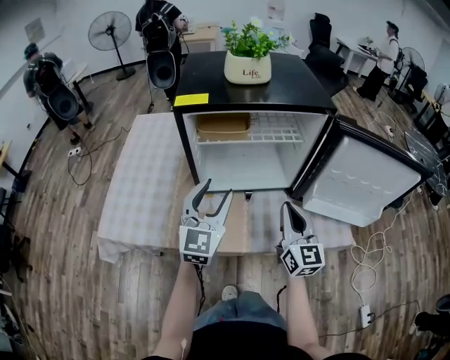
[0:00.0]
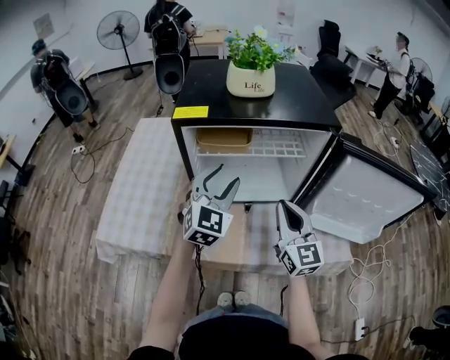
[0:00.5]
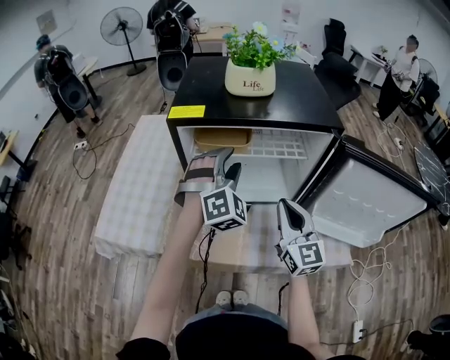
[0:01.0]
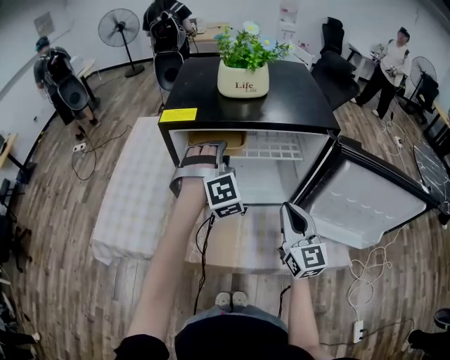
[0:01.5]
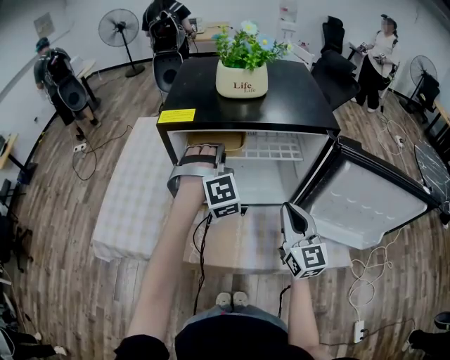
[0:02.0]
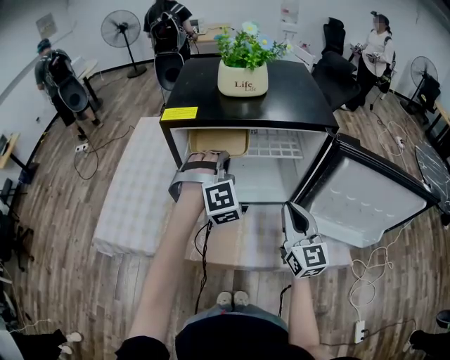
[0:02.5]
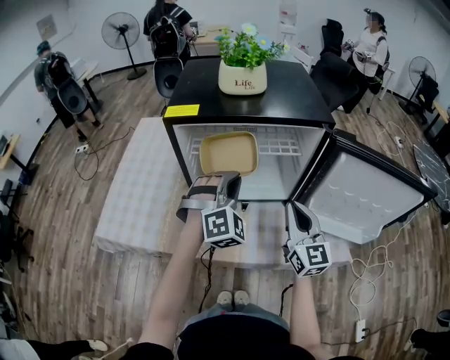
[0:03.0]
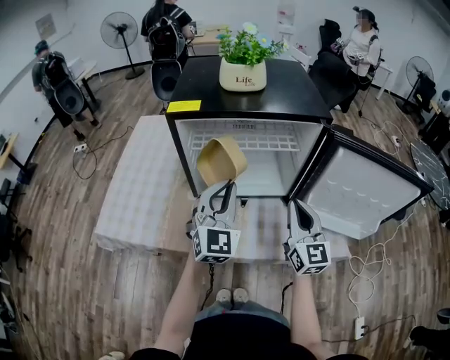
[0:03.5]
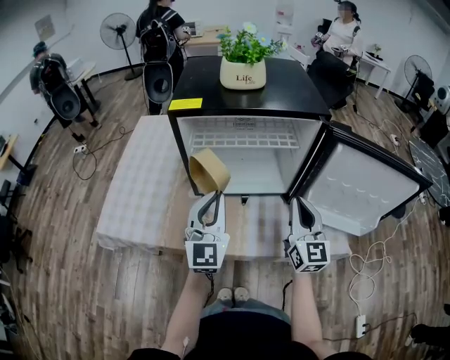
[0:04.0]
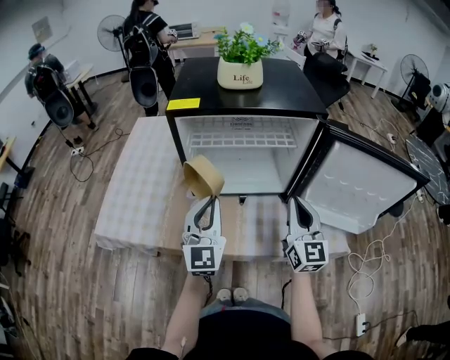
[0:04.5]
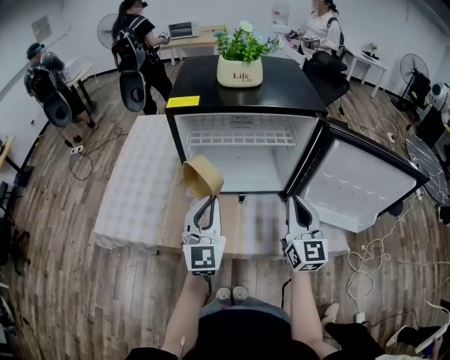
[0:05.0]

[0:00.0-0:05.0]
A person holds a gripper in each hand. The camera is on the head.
0:00.0 to 0:02.5: The left gripper is displaced forward and to the right by some 15 cm, twists roughly 60 degrees clockwise, seen from behind, and closes. The right gripper shifts roughly 5 cm forward.
0:02.5 to 0:05.0: The left gripper goes roughly 15 cm backward, and rotates around the line of its fingers by about 70 degrees, counterclockwise from behind.

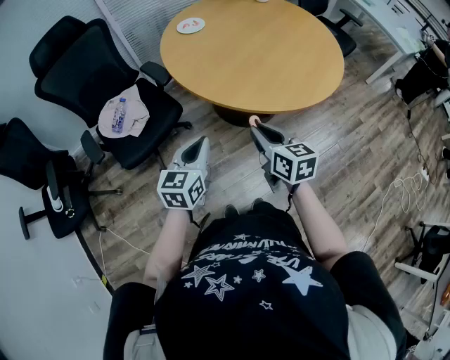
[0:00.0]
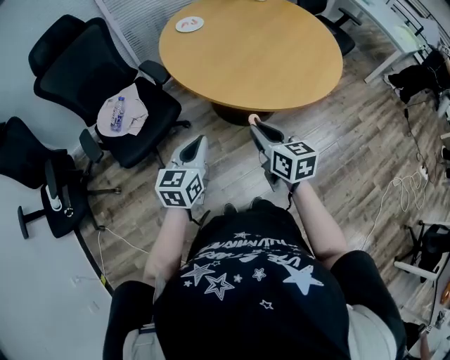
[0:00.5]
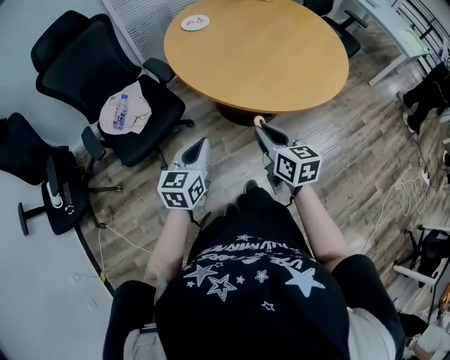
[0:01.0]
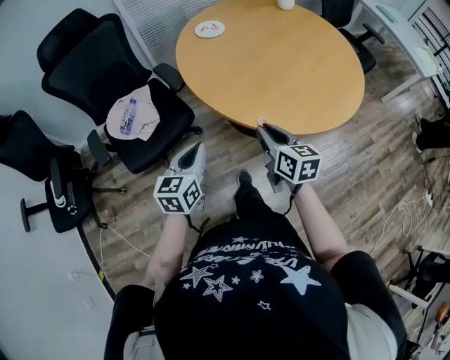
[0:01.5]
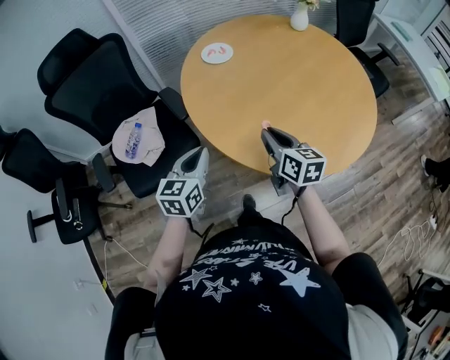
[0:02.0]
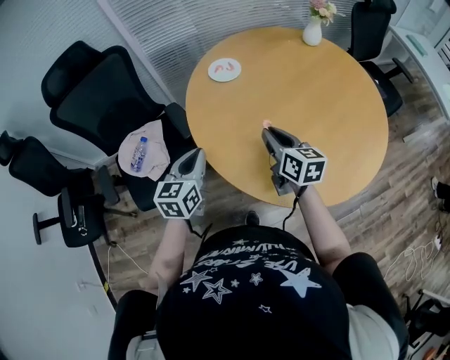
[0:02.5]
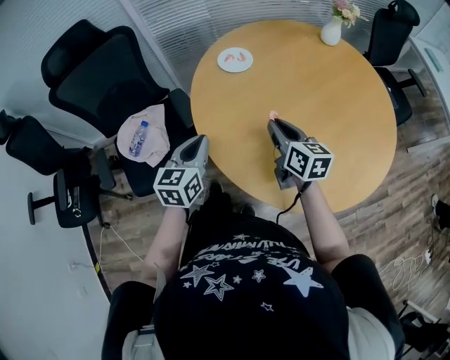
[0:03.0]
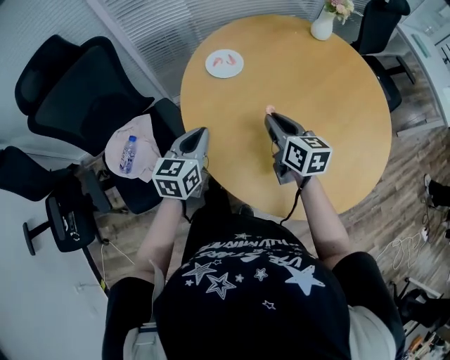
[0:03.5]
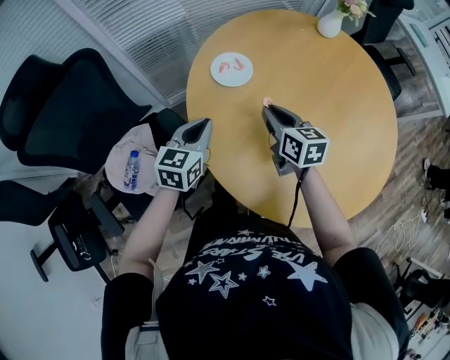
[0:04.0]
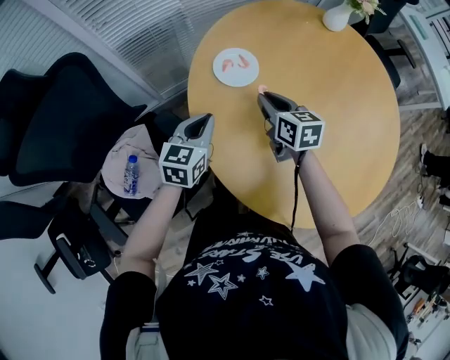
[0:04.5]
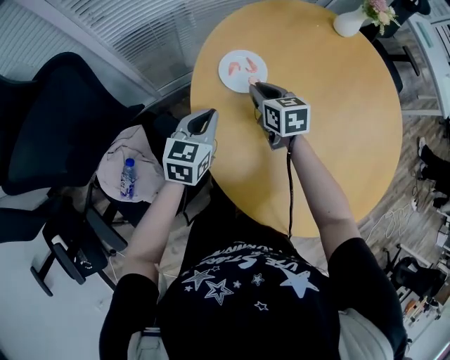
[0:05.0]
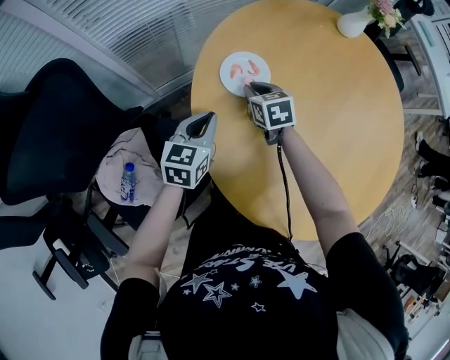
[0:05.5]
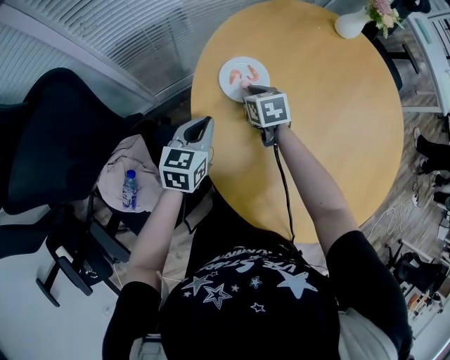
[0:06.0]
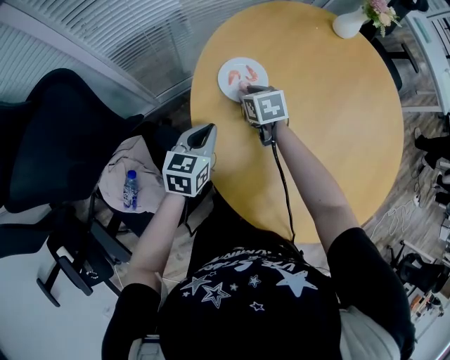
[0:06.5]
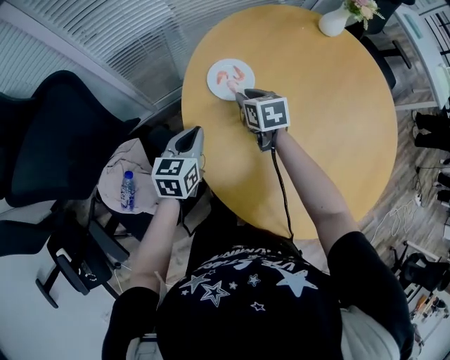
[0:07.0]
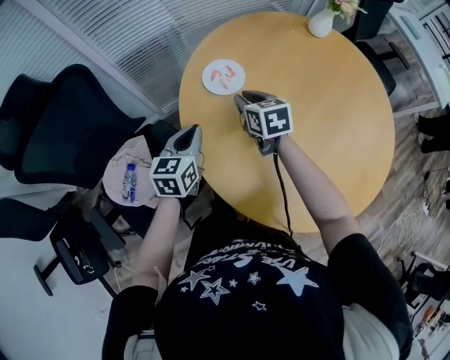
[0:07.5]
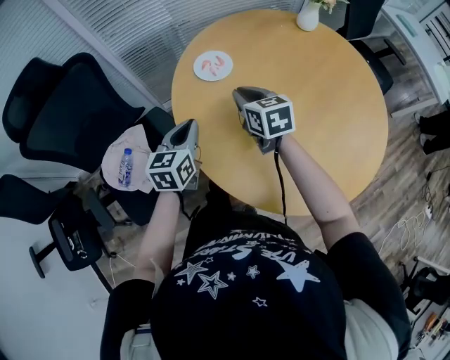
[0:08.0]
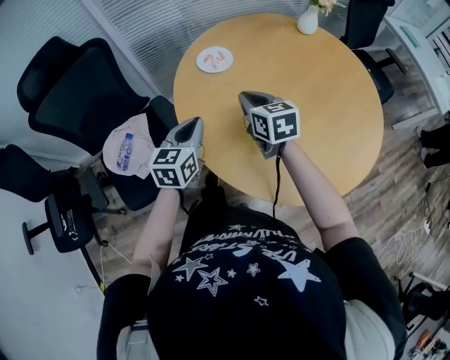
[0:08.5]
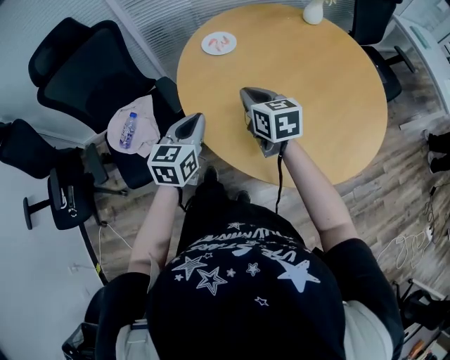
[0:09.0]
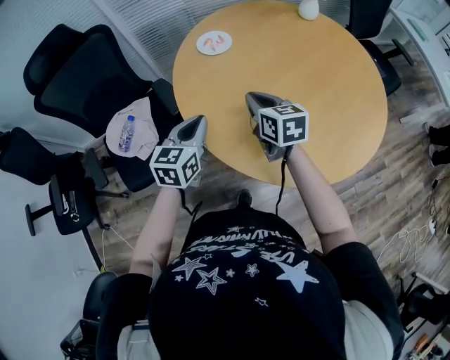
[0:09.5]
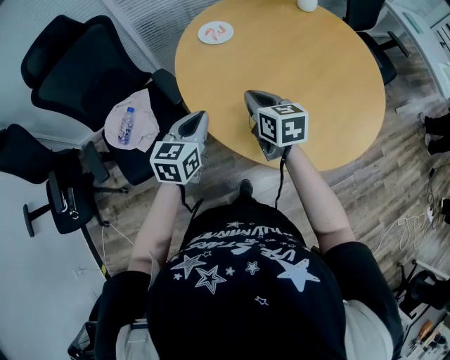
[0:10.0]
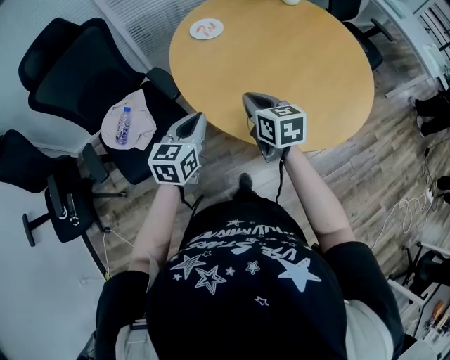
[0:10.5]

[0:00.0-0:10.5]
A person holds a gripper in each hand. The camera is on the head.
0:00.0 to 0:02.0: The grippers both shift forward by about 25 cm.
0:02.0 to 0:04.0: The grippers both shift forward by about 30 cm.
0:04.0 to 0:06.5: The right gripper shifts about 25 cm forward, downward and to the left, and changes its angle by roughly 30 degrees. Meanwhile the left gripper travels downward and forward by approximately 15 cm.
0:06.5 to 0:08.5: Both grippers move backward and upward, about 30 cm. The right gripper rotates some 30 degrees, and closes.
0:08.5 to 0:10.5: Both grippers travel together backward, some 15 cm.

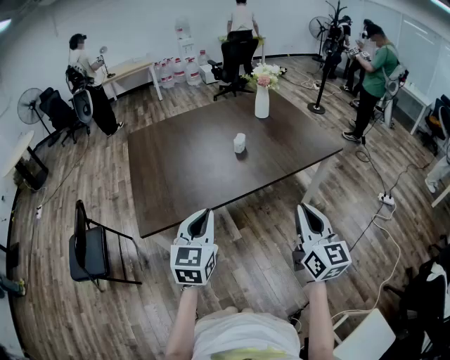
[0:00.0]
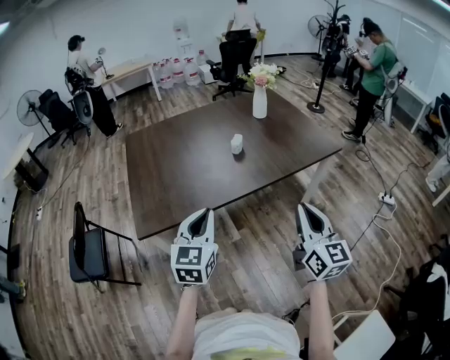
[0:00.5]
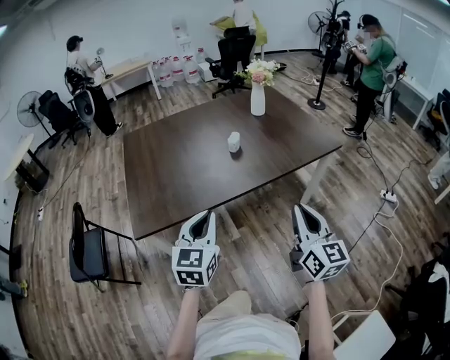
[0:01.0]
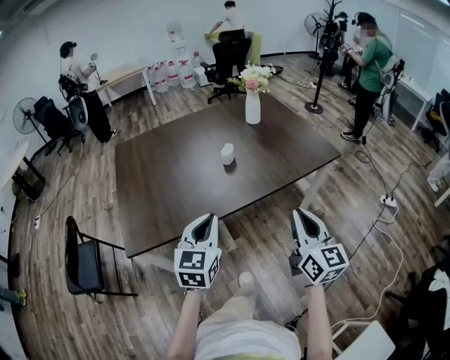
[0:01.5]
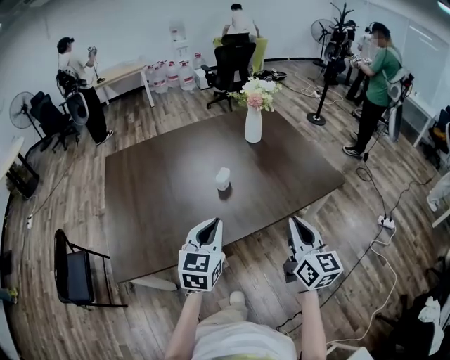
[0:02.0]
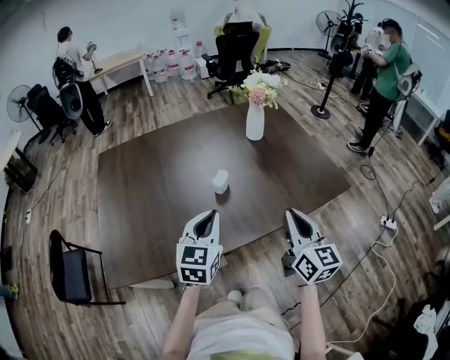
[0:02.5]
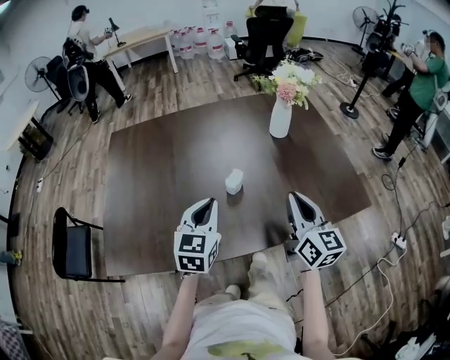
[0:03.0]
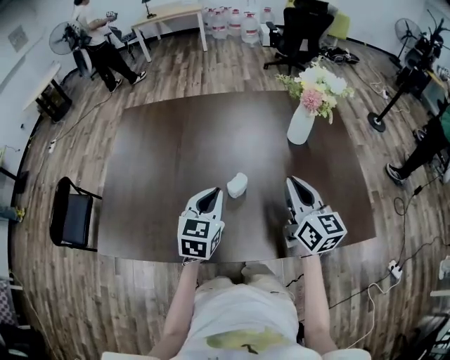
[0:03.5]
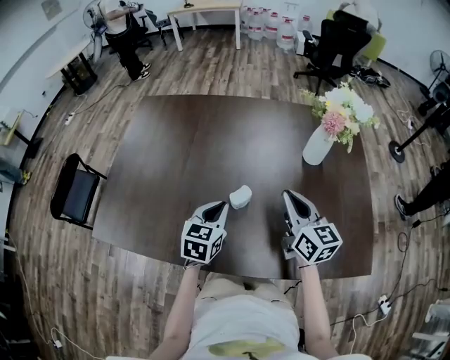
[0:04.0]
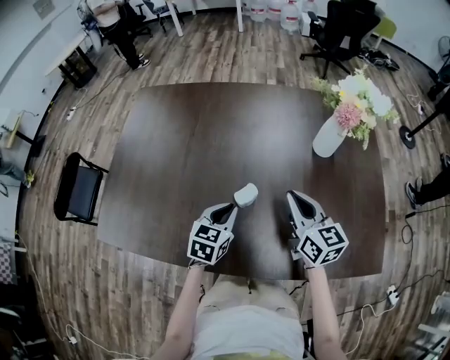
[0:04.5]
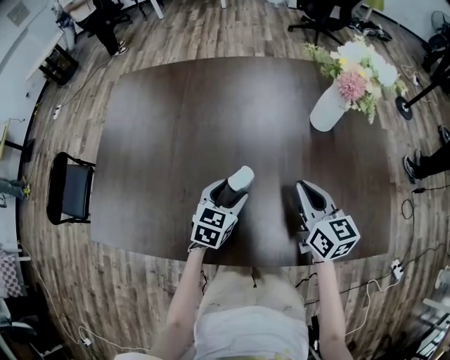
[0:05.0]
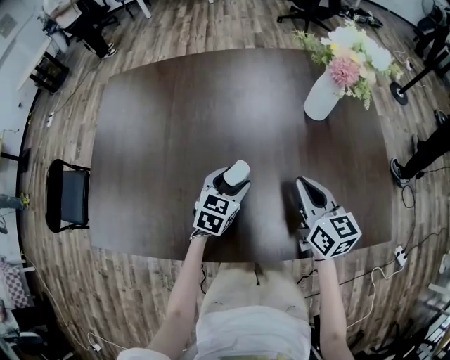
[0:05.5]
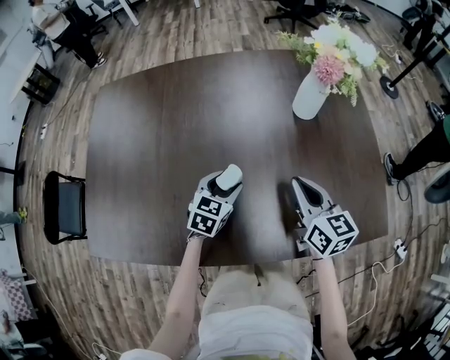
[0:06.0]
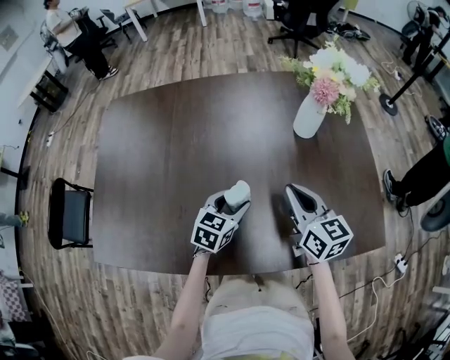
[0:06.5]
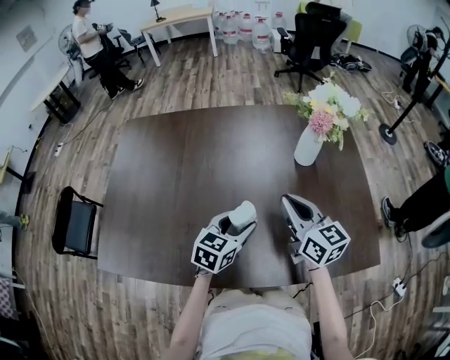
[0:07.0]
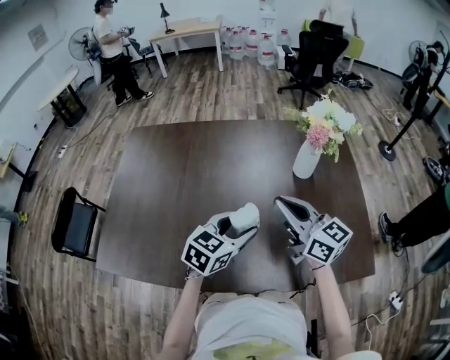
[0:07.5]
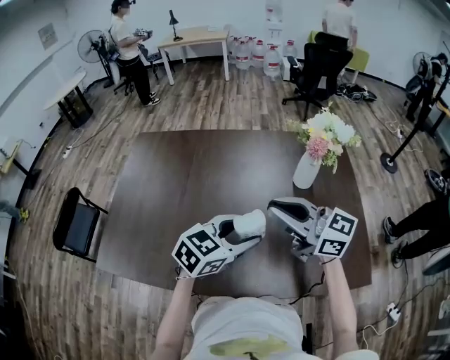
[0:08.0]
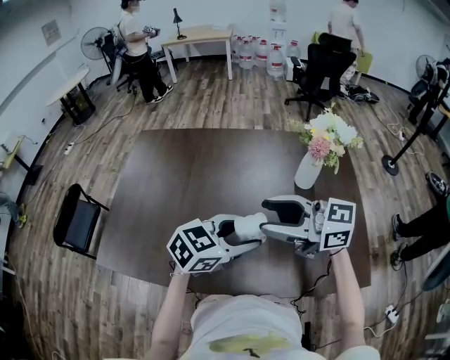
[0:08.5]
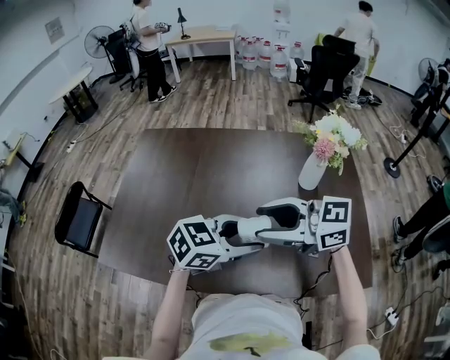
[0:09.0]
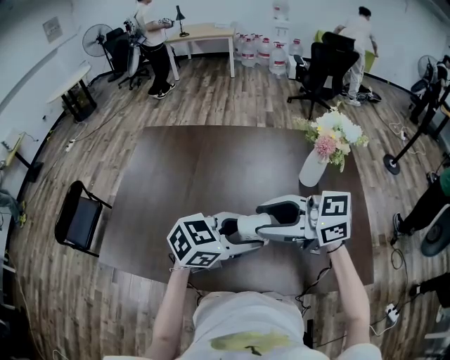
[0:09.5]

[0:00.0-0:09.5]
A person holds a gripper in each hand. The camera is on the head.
0:00.0 to 0:02.0: The right gripper heads forward, covering about 20 cm; the left gripper heads forward and to the right, covering approximately 25 cm.
0:02.0 to 0:04.0: The left gripper shifts by roughly 25 cm, and changes its angle by about 30 degrees, while the right gripper changes place by about 35 cm, and changes its angle by about 40 degrees.
0:04.0 to 0:05.5: The two grippers go about 10 cm downward. The left gripper opens its fingers.
0:05.5 to 0:07.5: Both grippers move upward, roughly 15 cm. The right gripper rotates some 30 degrees.
0:07.5 to 0:09.5: The left gripper is displaced upward by approximately 5 cm, and turns by approximately 20 degrees. The right gripper shifts by some 10 cm, swivels about 40 degrees, and opens.

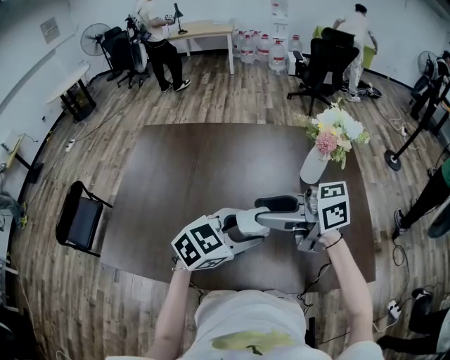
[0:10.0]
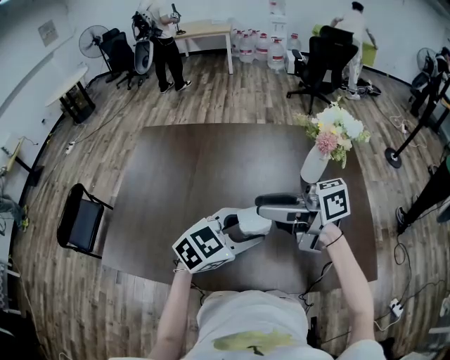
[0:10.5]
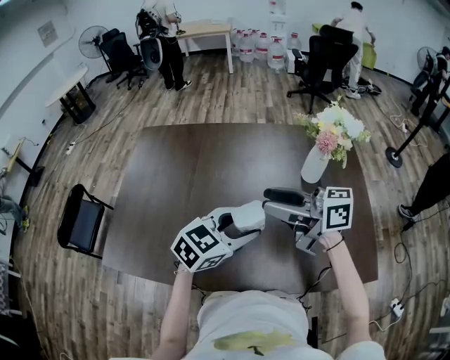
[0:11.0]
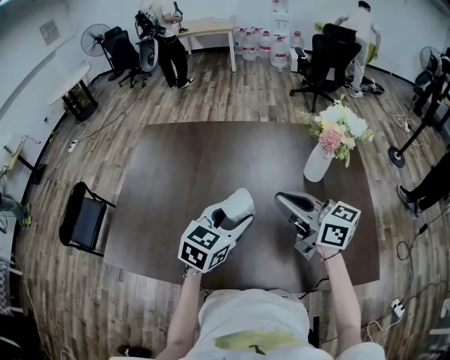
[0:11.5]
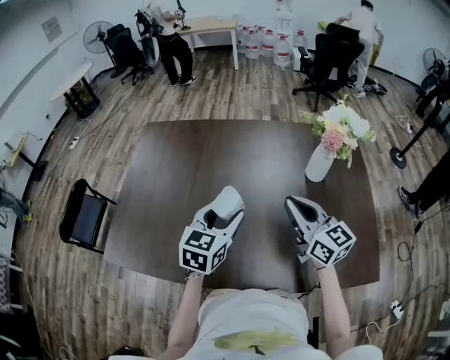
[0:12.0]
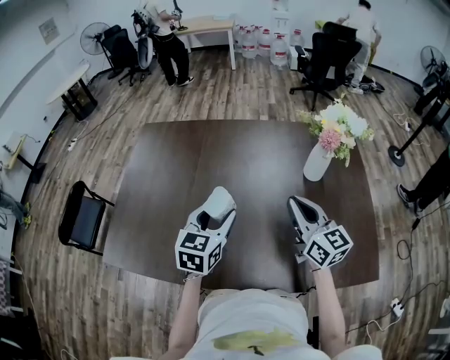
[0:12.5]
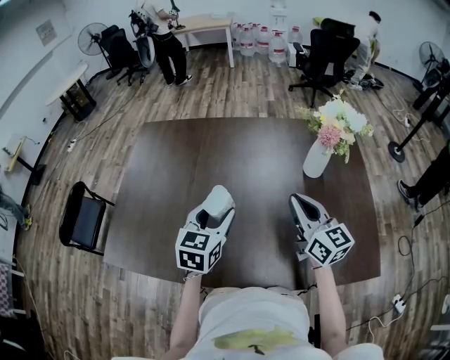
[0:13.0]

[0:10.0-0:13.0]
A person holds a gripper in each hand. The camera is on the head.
0:10.0 to 0:11.5: The left gripper ends up some 10 cm from where it was, and rotates roughly 30 degrees. Meanwhile the right gripper shifts by approximately 5 cm, rotates roughly 30 degrees, and closes.
0:11.5 to 0:13.0: The left gripper travels to the left by approximately 5 cm; the right gripper goes approximately 5 cm to the right, and turns by approximately 30 degrees.
